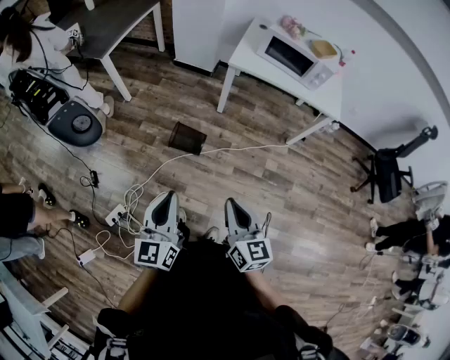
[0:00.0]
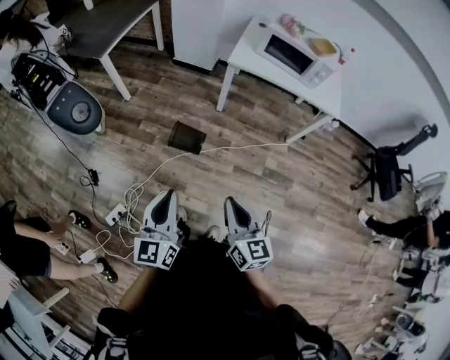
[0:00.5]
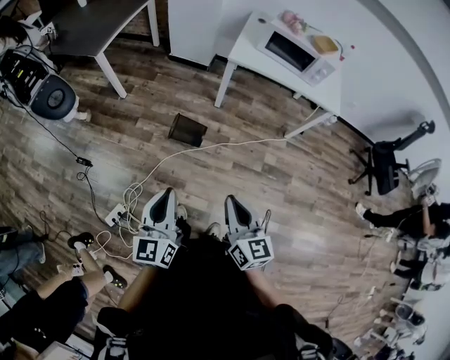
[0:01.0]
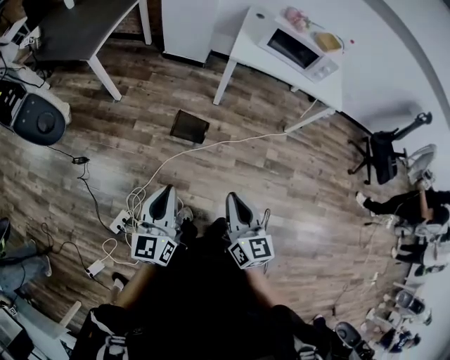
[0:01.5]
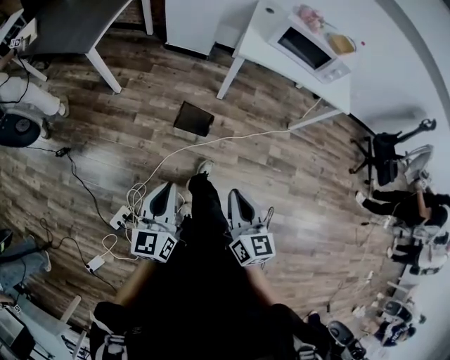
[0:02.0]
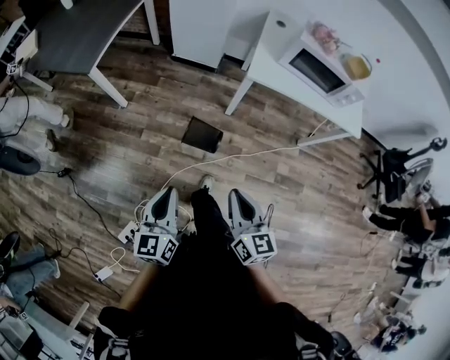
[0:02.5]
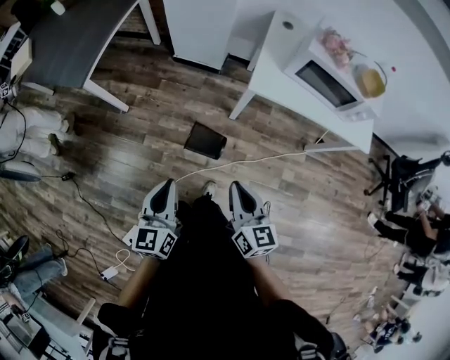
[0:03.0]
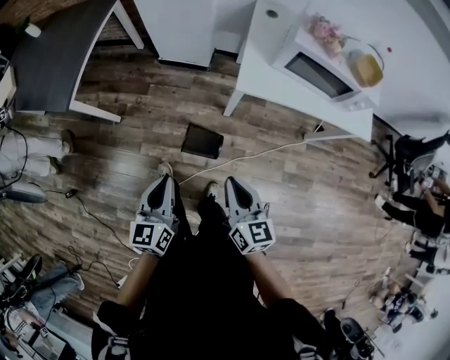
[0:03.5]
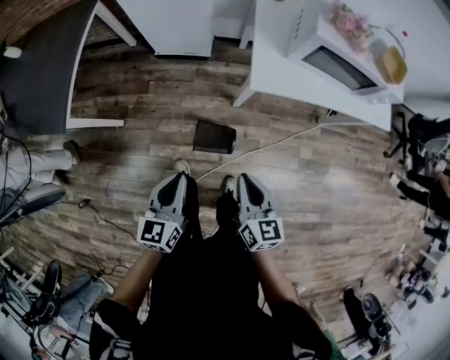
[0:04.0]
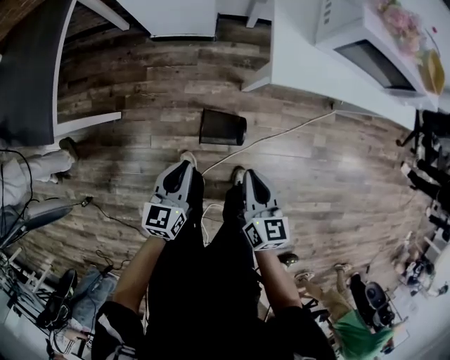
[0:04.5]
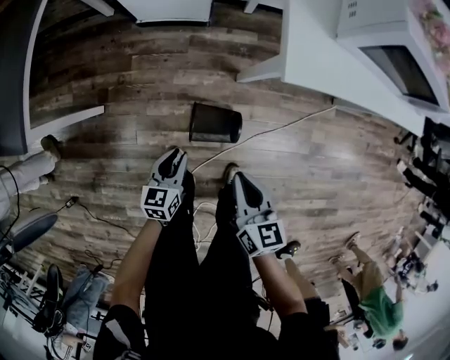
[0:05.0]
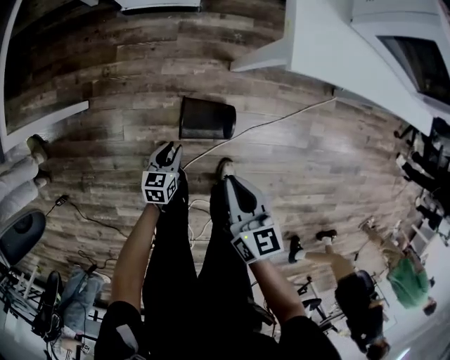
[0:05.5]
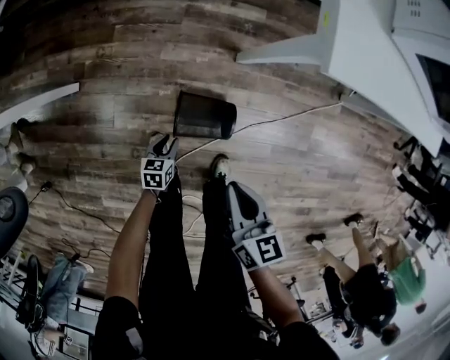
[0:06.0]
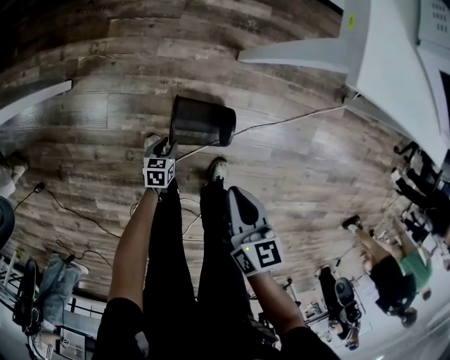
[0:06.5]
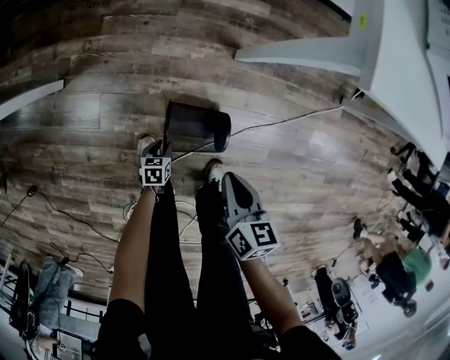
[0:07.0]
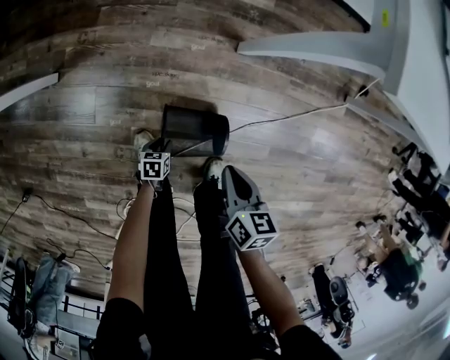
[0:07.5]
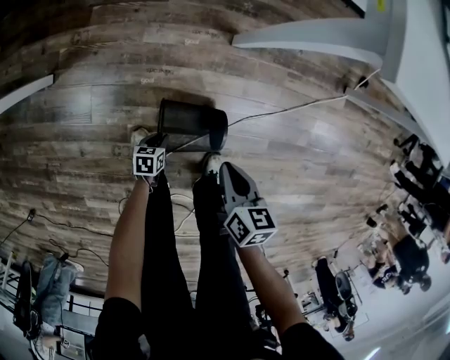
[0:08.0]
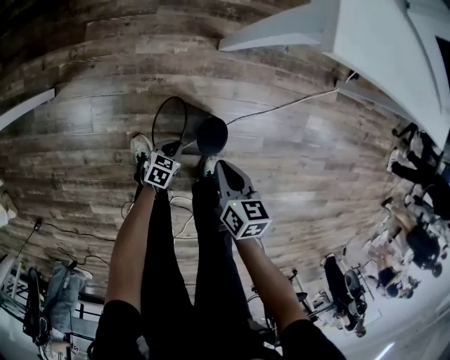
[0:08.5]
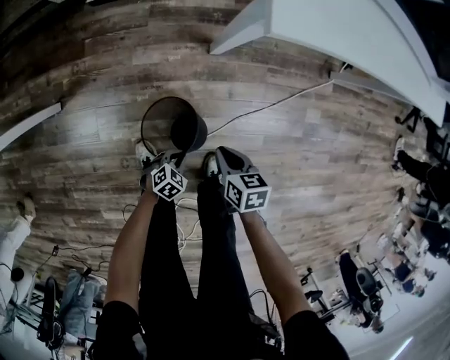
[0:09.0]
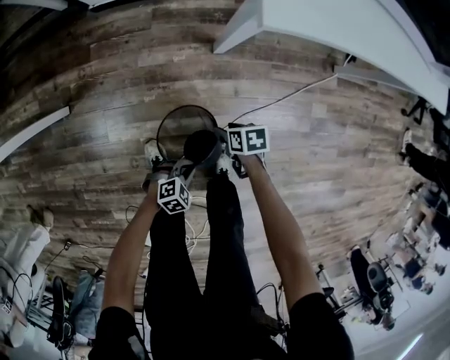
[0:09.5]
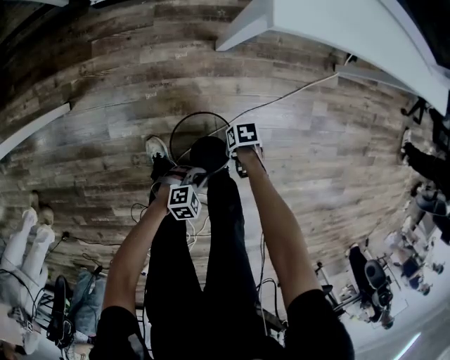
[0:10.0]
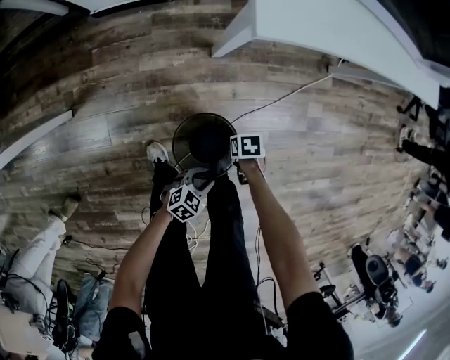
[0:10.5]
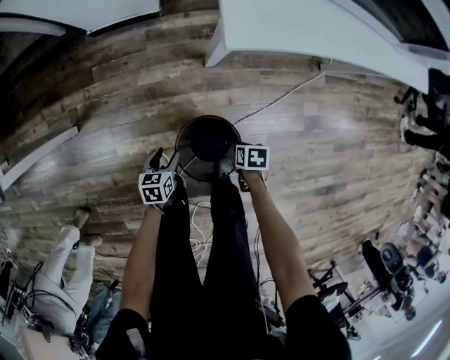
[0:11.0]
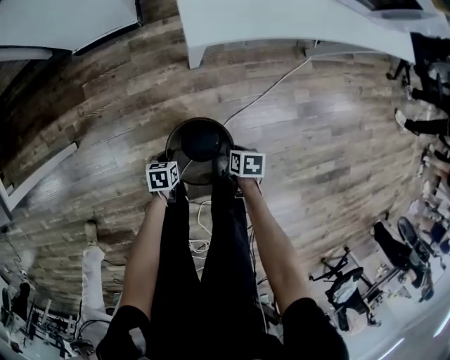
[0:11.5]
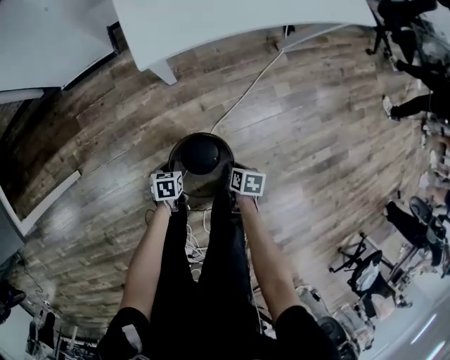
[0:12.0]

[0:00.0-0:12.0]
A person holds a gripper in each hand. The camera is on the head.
0:00.0 to 0:02.0: The right gripper shifts approximately 15 cm forward and to the left. Meanwhile the left gripper shifts some 20 cm forward, to the left and downward.
0:02.0 to 0:04.0: Both grippers are carried forward, approximately 40 cm. The left gripper turns by some 20 degrees.
0:04.0 to 0:06.0: The left gripper moves downward, about 60 cm, angles its fingers downward, by about 30 degrees, and opens up. Meanwhile the right gripper moves downward, about 30 cm.
0:06.0 to 0:08.0: Both grippers move downward, about 15 cm.
0:08.0 to 0:10.0: The right gripper is displaced downward by some 15 cm, changes its angle by roughly 50 degrees, and opens and closes again; the left gripper shifts roughly 20 cm upward, and rotates around the line of its fingers by approximately 80 degrees, clockwise from behind.
0:10.0 to 0:12.0: The left gripper shifts by some 15 cm, twists about 50 degrees counterclockwise, seen from behind, and opens, then closes again. The right gripper shifts roughly 15 cm upward, and rotates about 50 degrees.

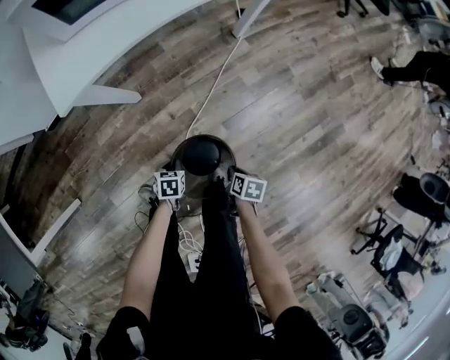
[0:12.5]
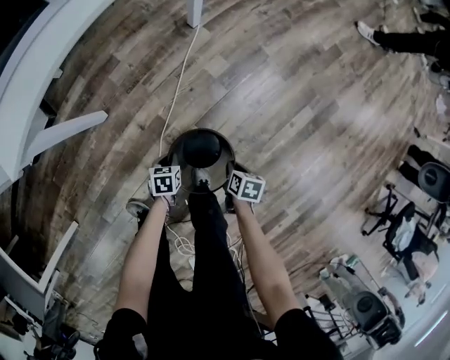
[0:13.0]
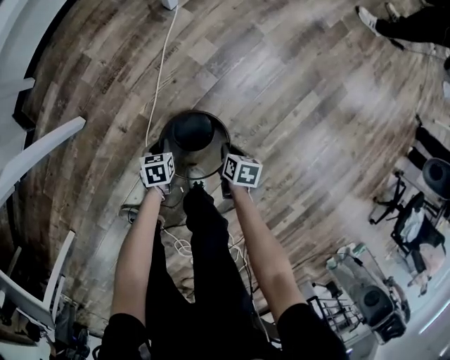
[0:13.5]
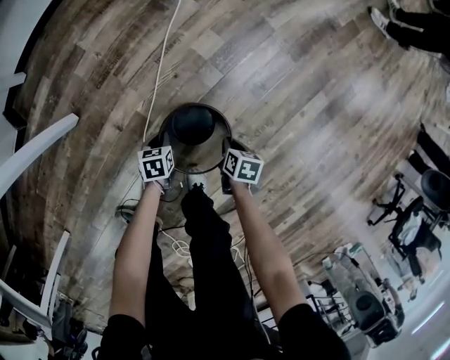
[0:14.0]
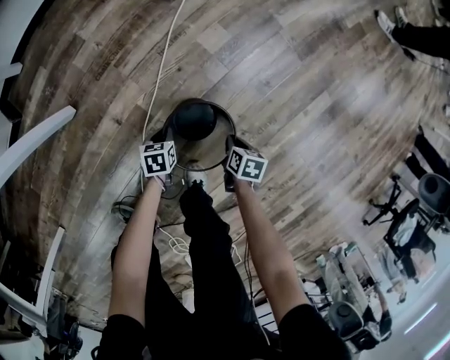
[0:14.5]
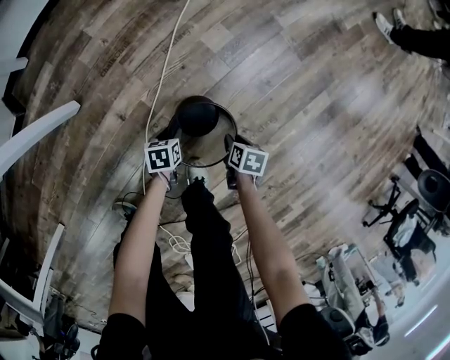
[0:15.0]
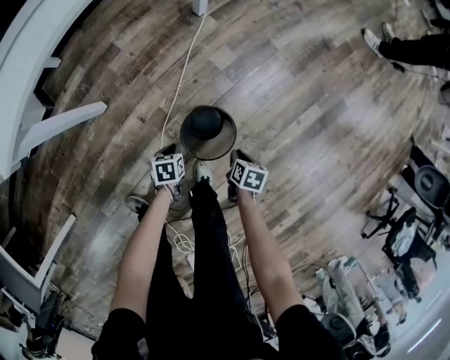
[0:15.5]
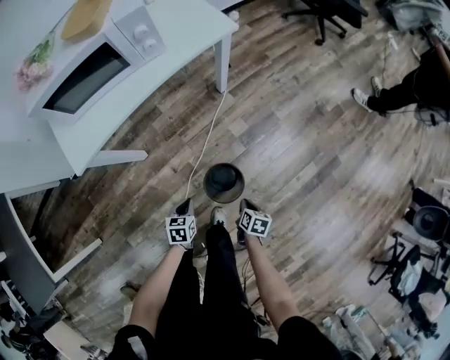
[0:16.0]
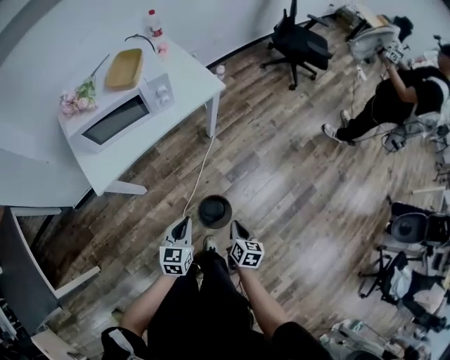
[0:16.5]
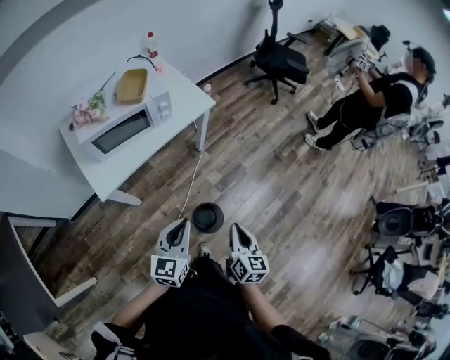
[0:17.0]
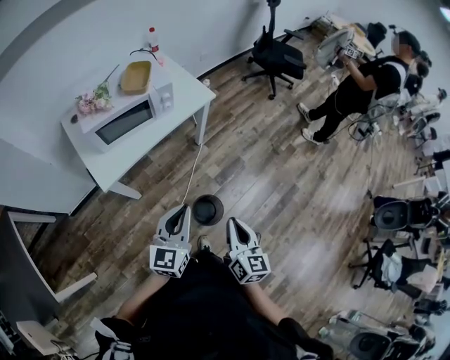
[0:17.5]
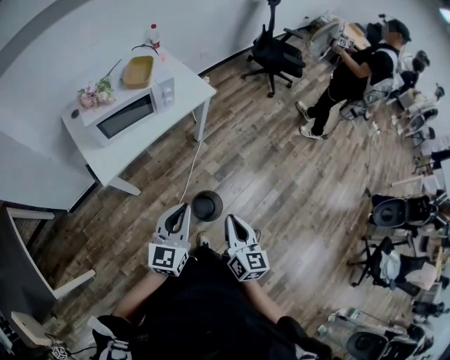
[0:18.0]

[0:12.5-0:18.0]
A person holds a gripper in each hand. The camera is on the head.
0:12.5 to 0:14.5: The right gripper is displaced downward and to the right by approximately 30 cm; the left gripper shifts roughly 35 cm downward, to the right and forward.
0:14.5 to 0:16.0: Both grippers move upward, about 35 cm. The right gripper opens, then closes once more. The left gripper opens, then closes again.
0:16.0 to 0:18.0: The two grippers go approximately 50 cm upward. The left gripper tilts its fingers roughly 50 degrees upward, while the right gripper tilts its fingers roughly 40 degrees upward.

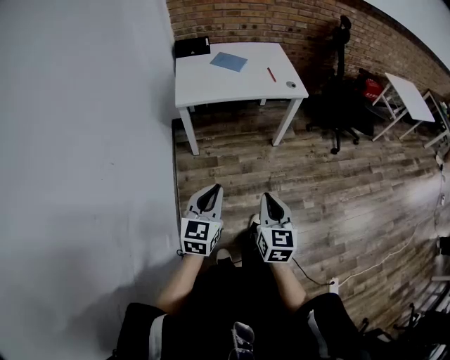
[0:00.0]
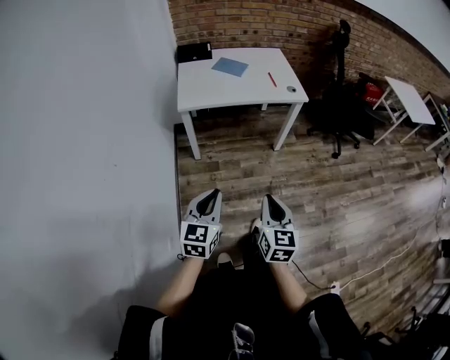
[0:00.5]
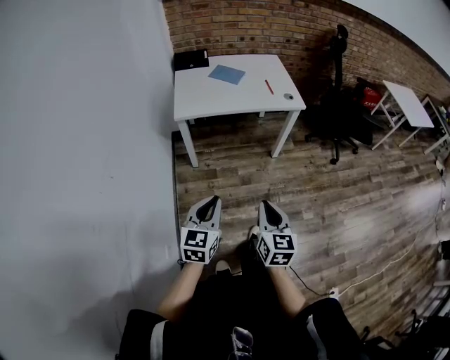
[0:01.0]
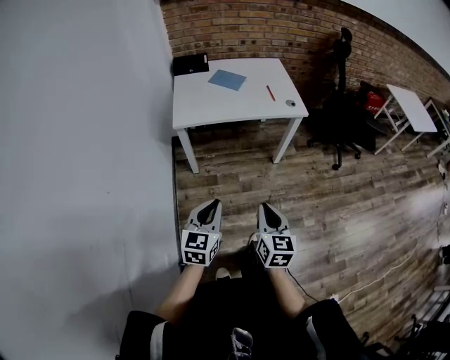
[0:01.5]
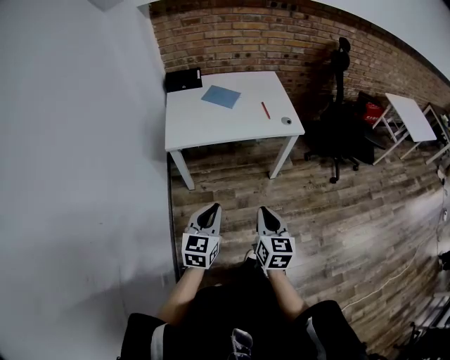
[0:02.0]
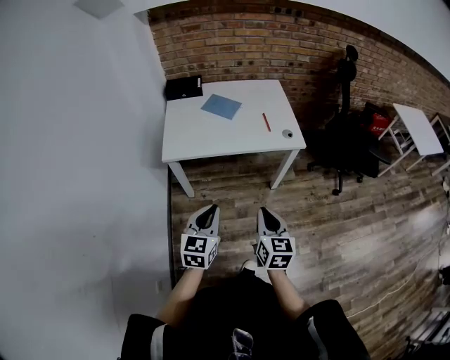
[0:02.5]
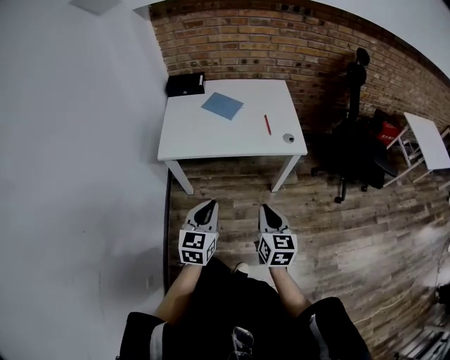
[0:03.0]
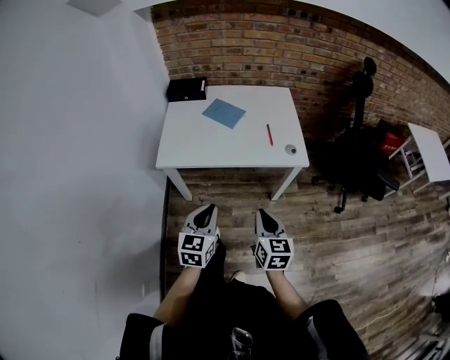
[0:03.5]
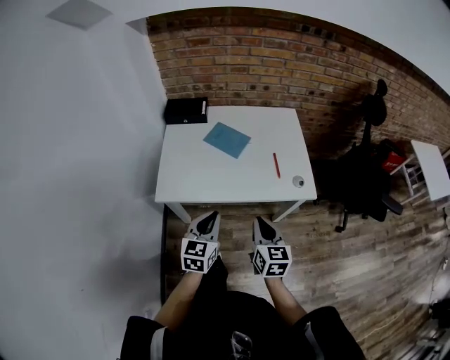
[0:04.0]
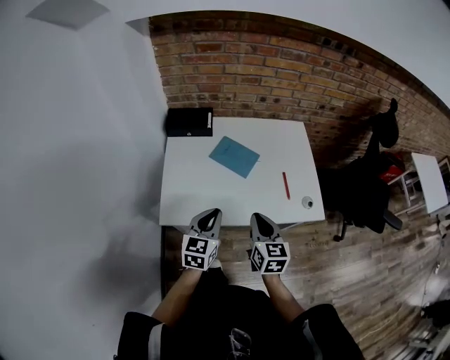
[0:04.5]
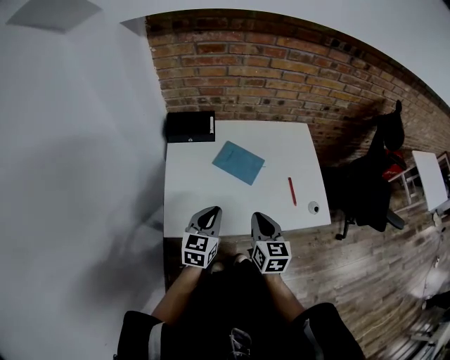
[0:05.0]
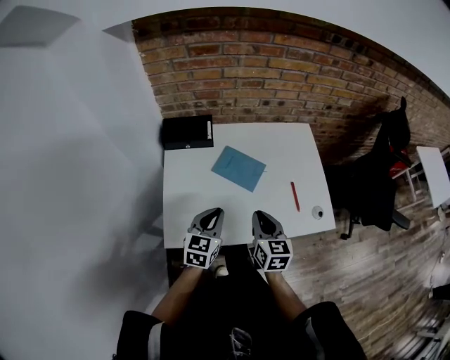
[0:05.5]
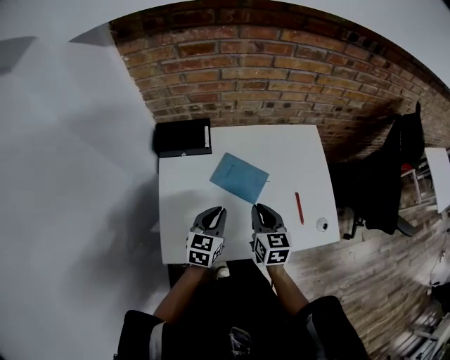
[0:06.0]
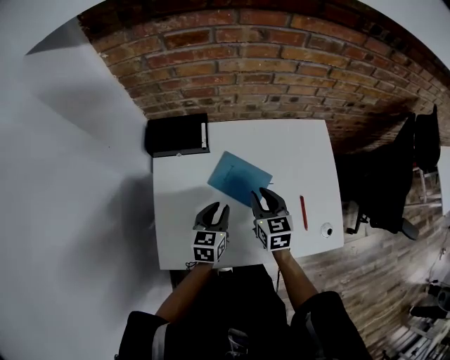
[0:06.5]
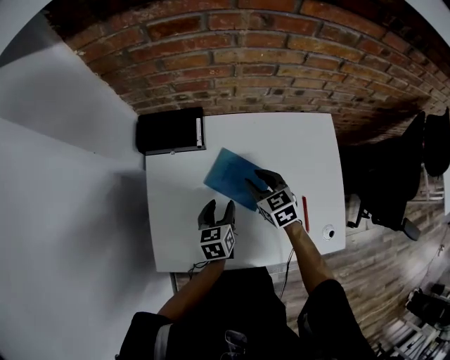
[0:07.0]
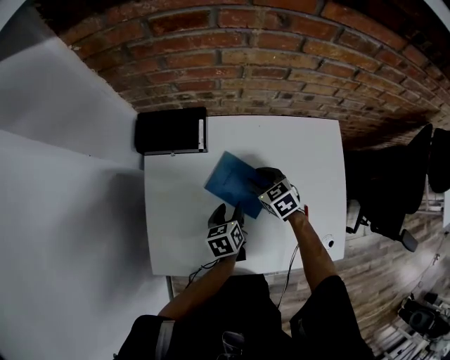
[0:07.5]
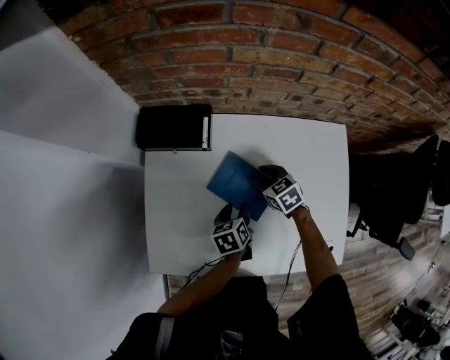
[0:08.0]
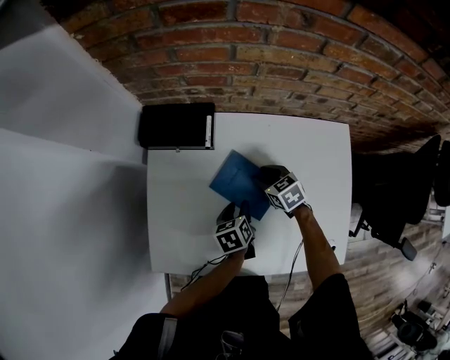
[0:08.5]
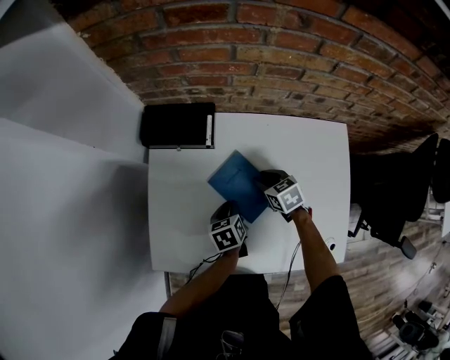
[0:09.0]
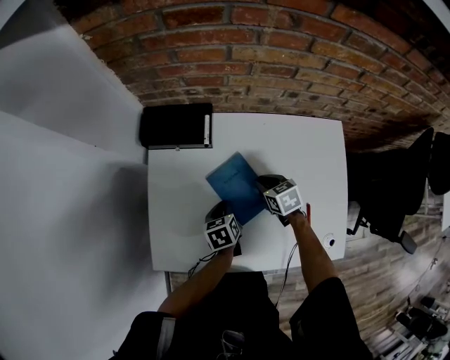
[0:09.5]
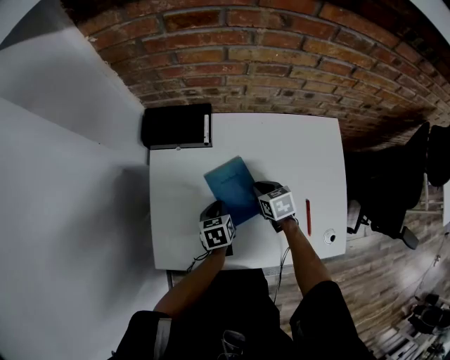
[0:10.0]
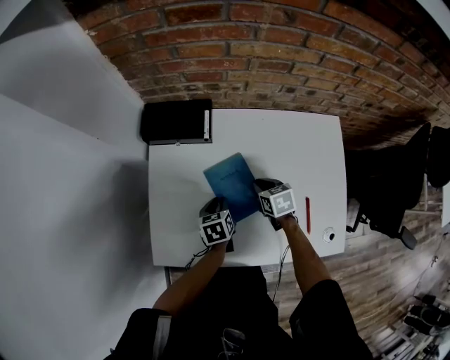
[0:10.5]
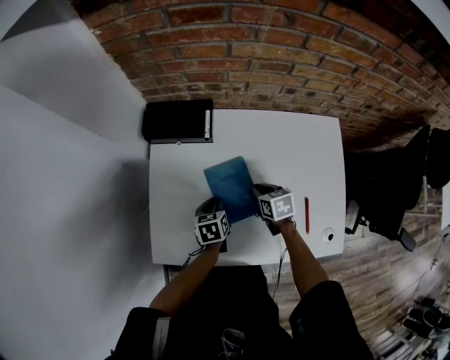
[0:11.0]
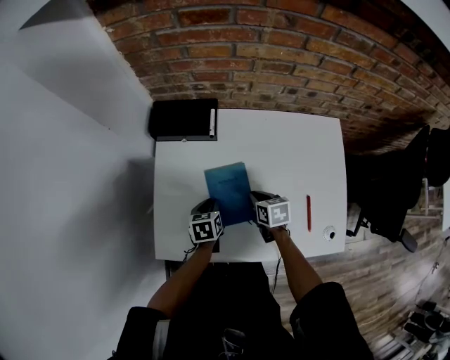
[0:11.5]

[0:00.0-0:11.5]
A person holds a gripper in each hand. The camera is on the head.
0:00.0 to 0:02.0: The grippers both shift forward by about 15 cm.
0:02.0 to 0:04.0: Both grippers travel together forward, approximately 30 cm.
0:04.0 to 0:06.0: The two grippers go approximately 30 cm forward.
0:06.0 to 0:07.5: The left gripper shifts approximately 15 cm downward and forward, turns by roughly 40 degrees, and opens. Meanwhile the right gripper travels forward and downward by roughly 25 cm, changes its angle by approximately 40 degrees, and opens.
0:07.5 to 0:09.5: The left gripper closes.
0:09.5 to 0:11.5: The right gripper heads backward, covering roughly 5 cm. Meanwhile the left gripper heads to the left, covering roughly 5 cm.
